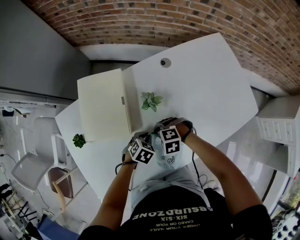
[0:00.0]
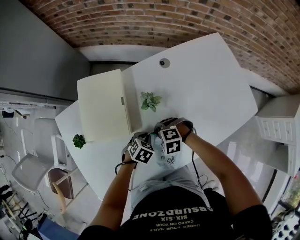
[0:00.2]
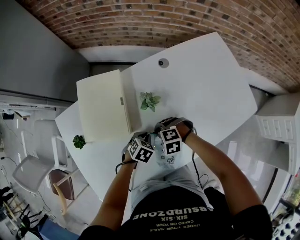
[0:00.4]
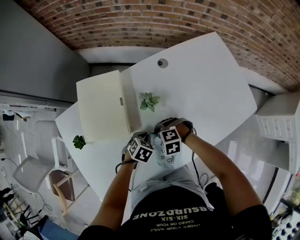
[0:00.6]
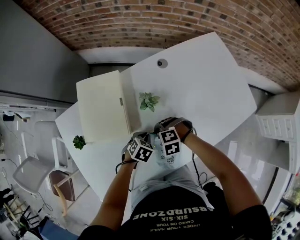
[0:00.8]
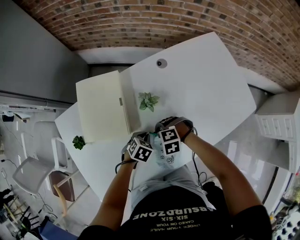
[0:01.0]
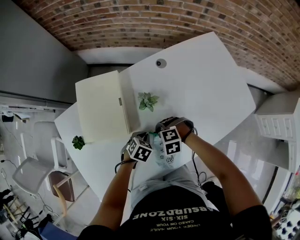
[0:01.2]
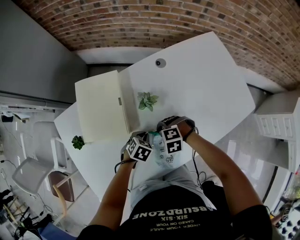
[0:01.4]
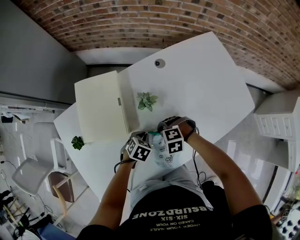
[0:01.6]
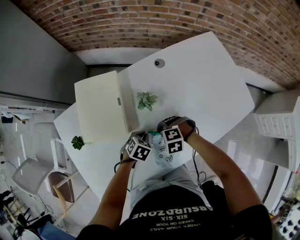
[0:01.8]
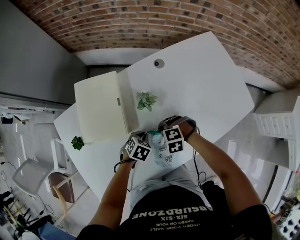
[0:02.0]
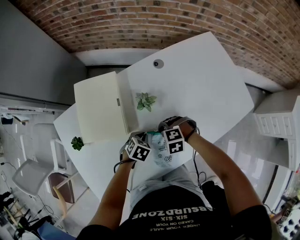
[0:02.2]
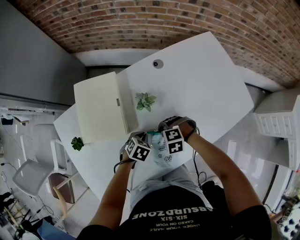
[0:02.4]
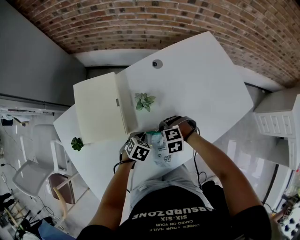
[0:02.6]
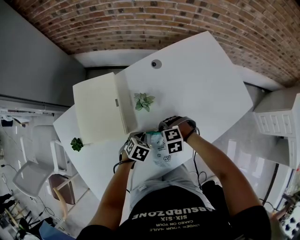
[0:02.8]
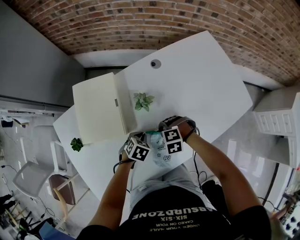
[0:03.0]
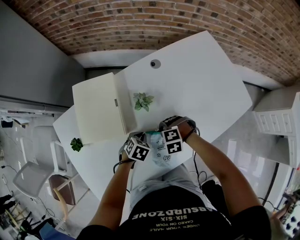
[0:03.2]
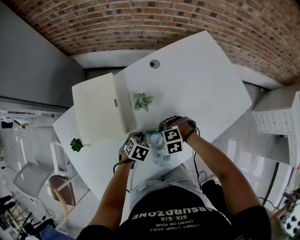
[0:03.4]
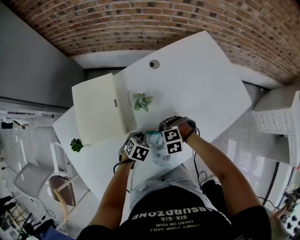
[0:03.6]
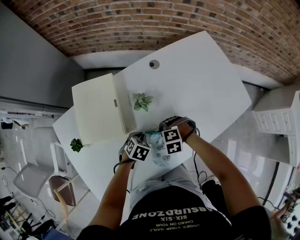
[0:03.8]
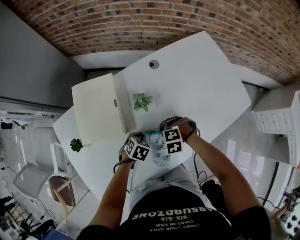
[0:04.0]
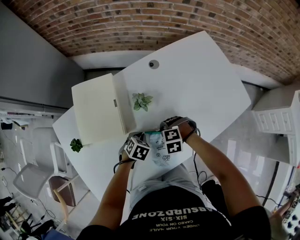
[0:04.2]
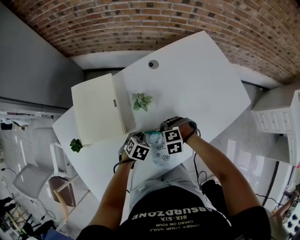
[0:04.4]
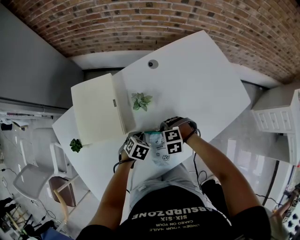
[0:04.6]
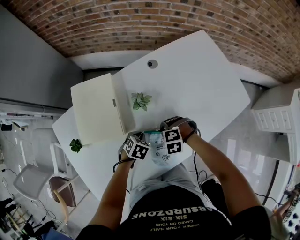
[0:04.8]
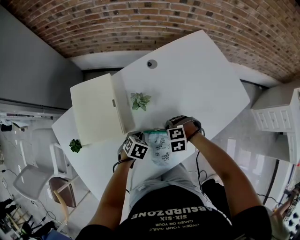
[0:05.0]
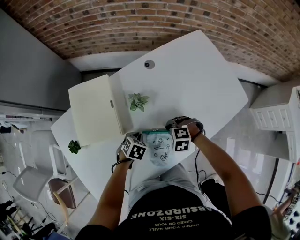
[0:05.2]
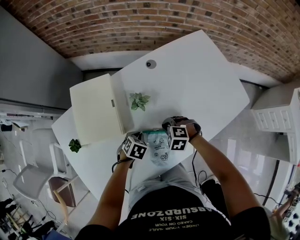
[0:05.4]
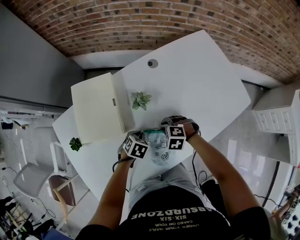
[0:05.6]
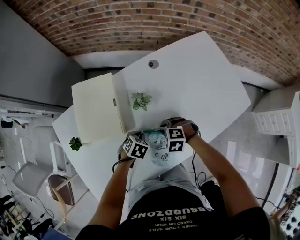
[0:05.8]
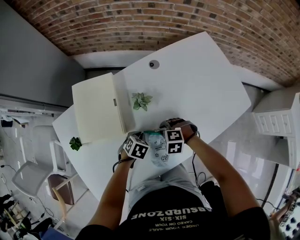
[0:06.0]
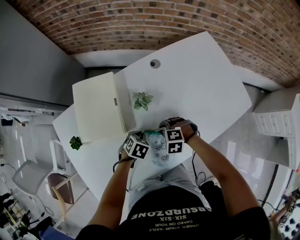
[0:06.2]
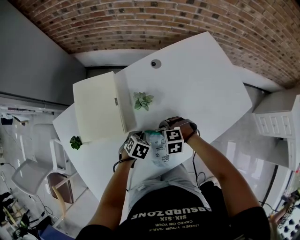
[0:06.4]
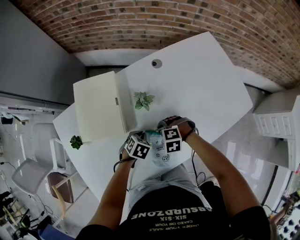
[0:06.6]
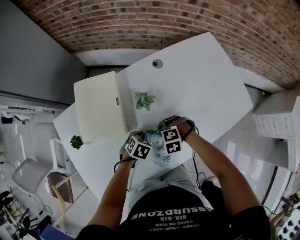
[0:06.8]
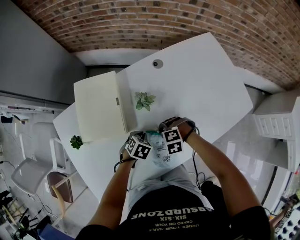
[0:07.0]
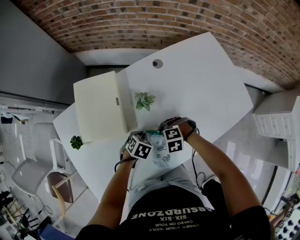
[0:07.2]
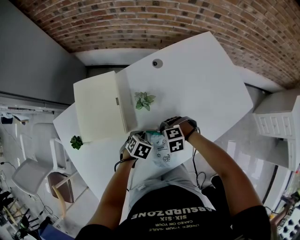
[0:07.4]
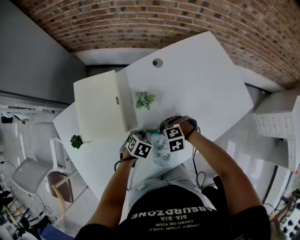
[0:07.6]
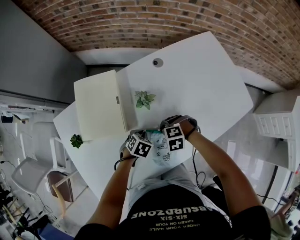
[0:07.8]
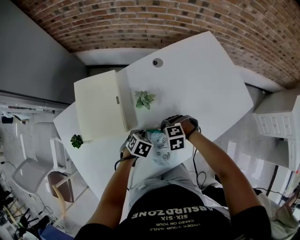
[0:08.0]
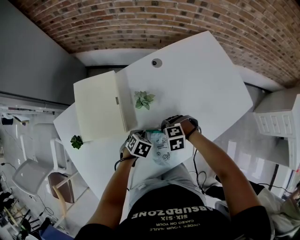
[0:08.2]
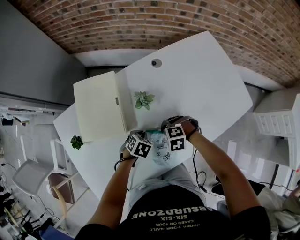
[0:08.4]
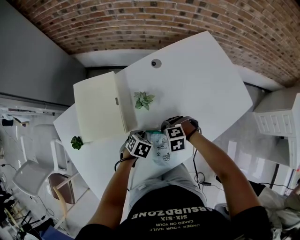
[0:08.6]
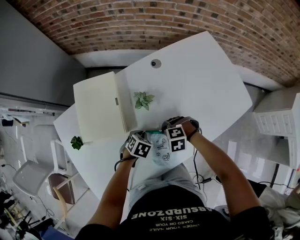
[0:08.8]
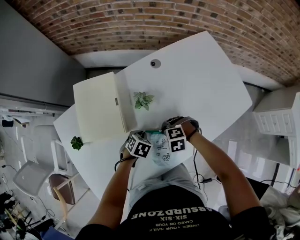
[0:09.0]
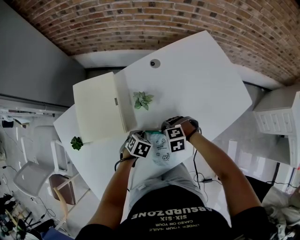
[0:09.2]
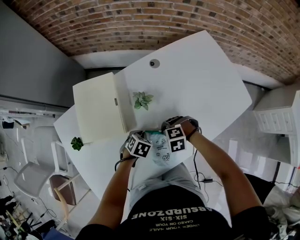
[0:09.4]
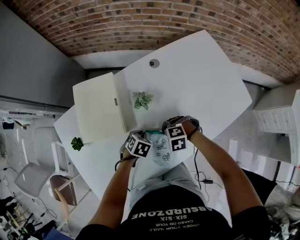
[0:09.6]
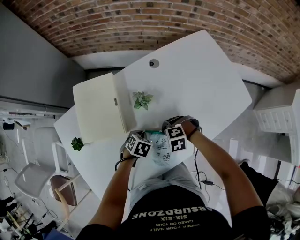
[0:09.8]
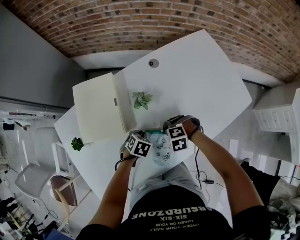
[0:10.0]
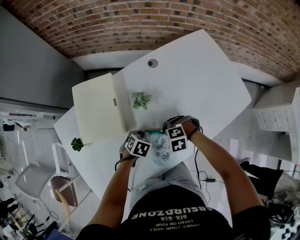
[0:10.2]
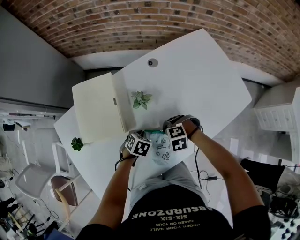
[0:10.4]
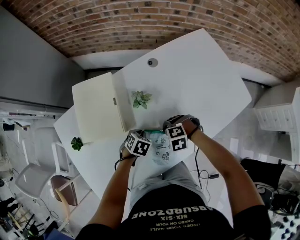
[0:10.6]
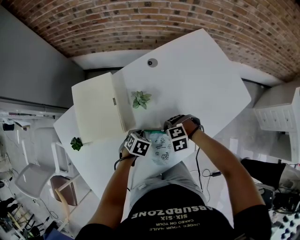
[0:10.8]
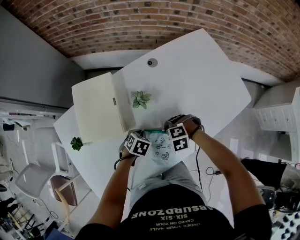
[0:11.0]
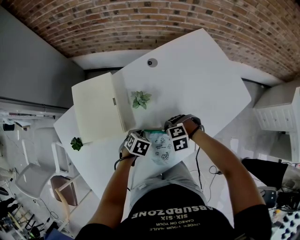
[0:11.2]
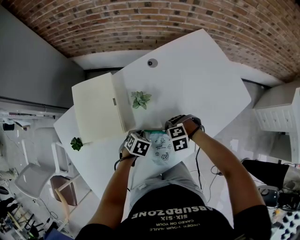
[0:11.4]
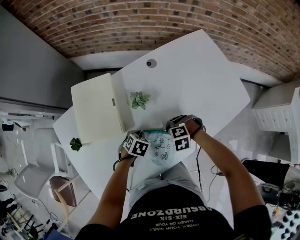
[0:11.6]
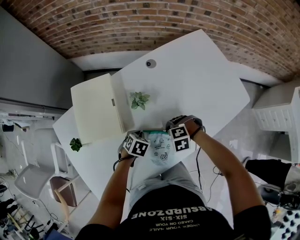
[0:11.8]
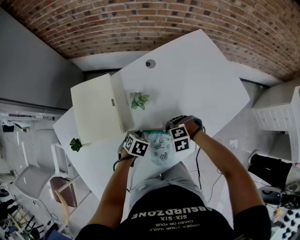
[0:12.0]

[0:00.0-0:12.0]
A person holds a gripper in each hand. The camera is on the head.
0:00.0 to 0:03.0: The grippers move only a little.
0:03.0 to 0:04.4: The grippers stay close to where they were, moving slightly.
0:04.4 to 0:07.6: The grippers move only a little.
0:07.6 to 0:09.0: Neither gripper changes place.
0:09.0 to 0:10.4: Neither gripper changes place.
0:10.4 to 0:12.0: The grippers make only small movements.

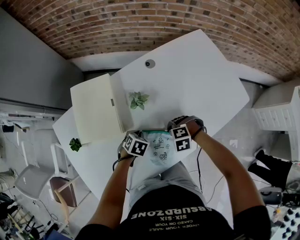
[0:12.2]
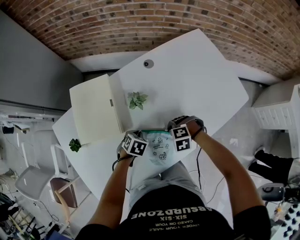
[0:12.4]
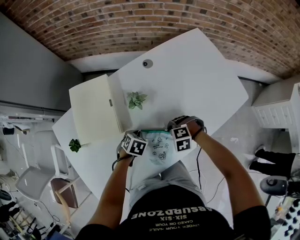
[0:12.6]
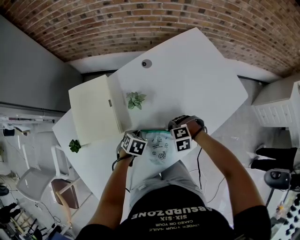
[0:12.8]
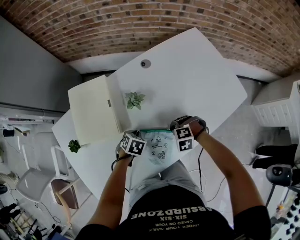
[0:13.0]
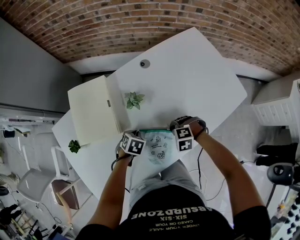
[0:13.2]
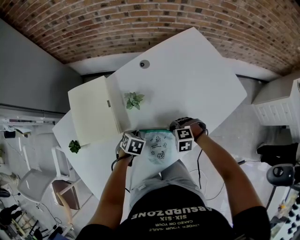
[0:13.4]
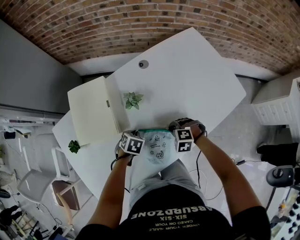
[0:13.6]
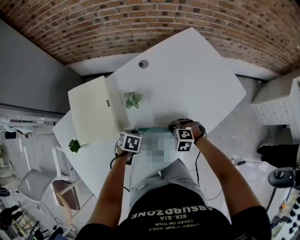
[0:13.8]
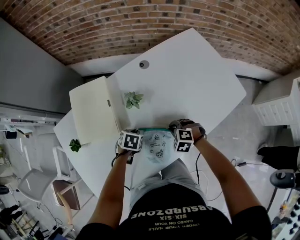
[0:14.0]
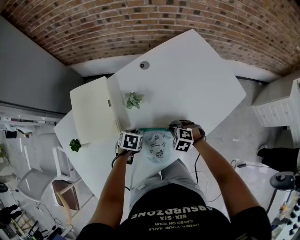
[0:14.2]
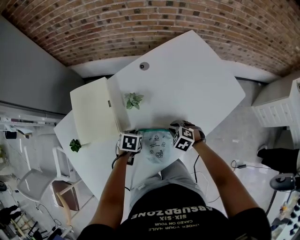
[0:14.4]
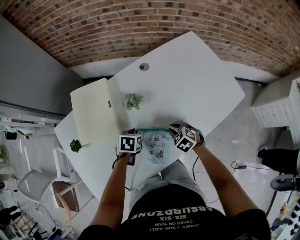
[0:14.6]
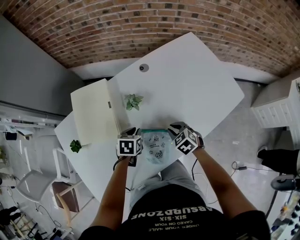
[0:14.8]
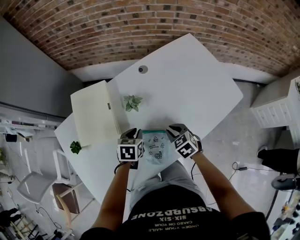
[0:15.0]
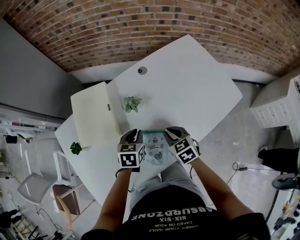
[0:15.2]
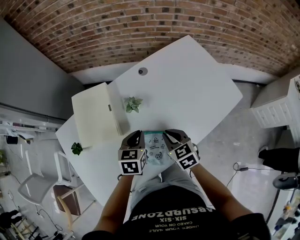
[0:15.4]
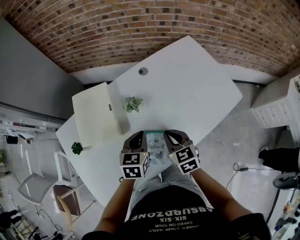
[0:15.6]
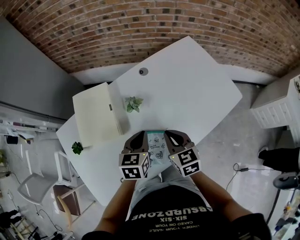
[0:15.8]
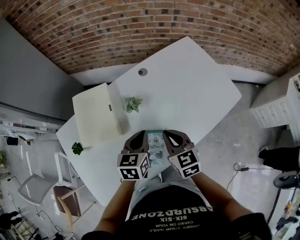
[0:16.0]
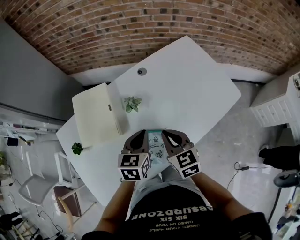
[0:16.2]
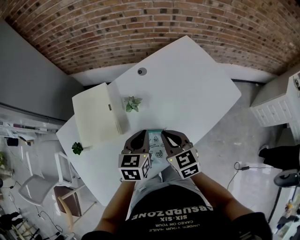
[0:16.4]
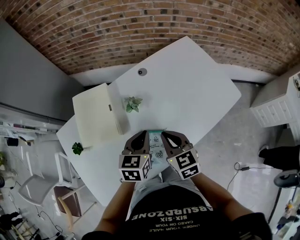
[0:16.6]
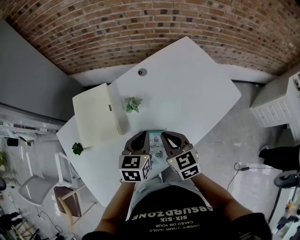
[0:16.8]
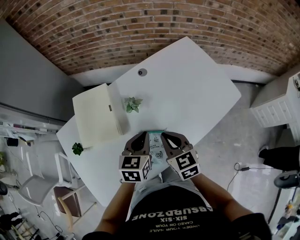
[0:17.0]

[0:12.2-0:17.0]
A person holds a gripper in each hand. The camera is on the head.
0:12.2 to 0:13.8: The right gripper swivels roughly 20 degrees.
0:13.8 to 0:15.4: The two grippers go roughly 15 cm upward. The right gripper rotates around the line of its fingers by about 50 degrees, clockwise from behind. The left gripper turns by roughly 30 degrees.
0:15.4 to 0:17.0: The grippers both shift upward by roughly 5 cm.

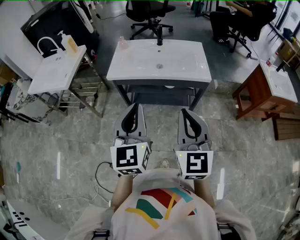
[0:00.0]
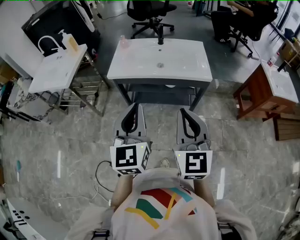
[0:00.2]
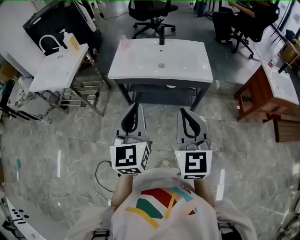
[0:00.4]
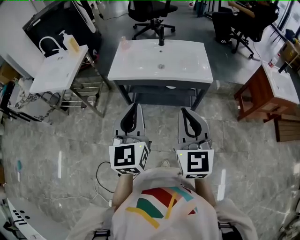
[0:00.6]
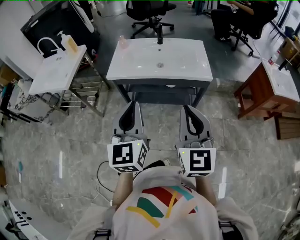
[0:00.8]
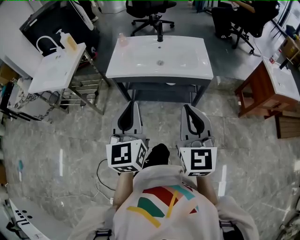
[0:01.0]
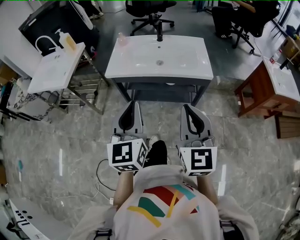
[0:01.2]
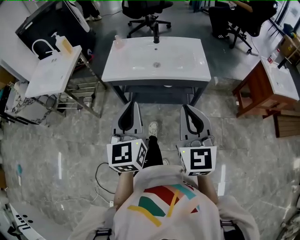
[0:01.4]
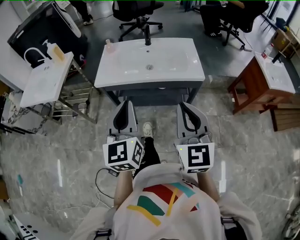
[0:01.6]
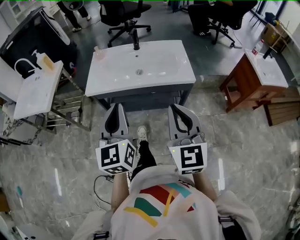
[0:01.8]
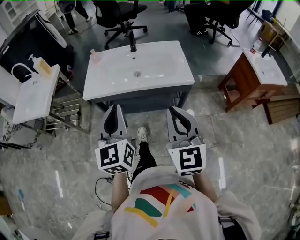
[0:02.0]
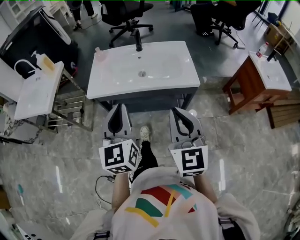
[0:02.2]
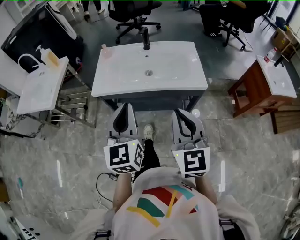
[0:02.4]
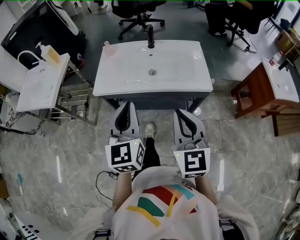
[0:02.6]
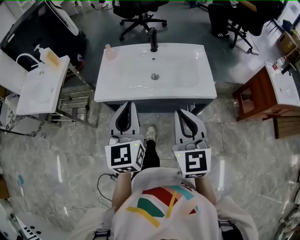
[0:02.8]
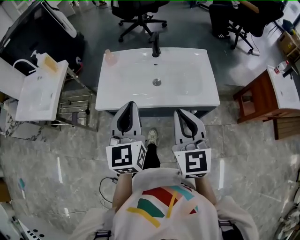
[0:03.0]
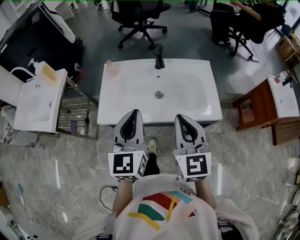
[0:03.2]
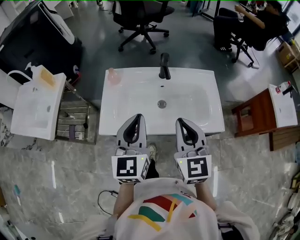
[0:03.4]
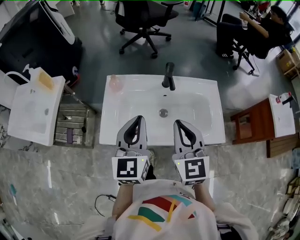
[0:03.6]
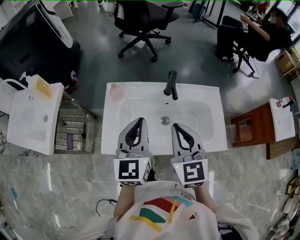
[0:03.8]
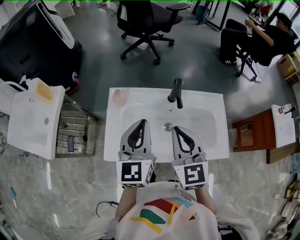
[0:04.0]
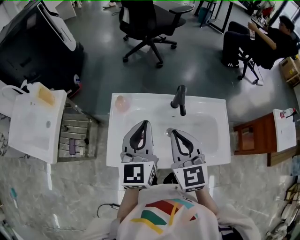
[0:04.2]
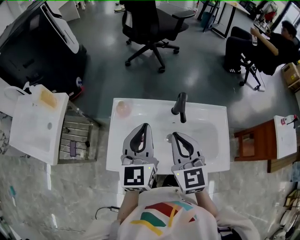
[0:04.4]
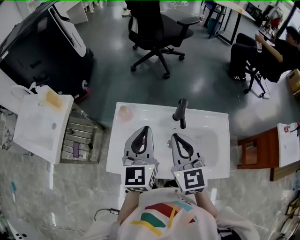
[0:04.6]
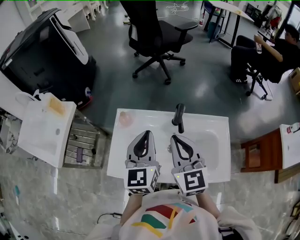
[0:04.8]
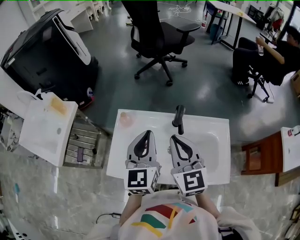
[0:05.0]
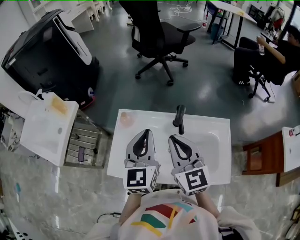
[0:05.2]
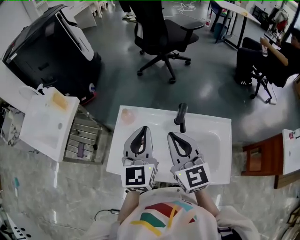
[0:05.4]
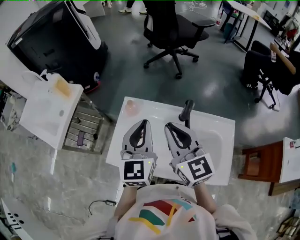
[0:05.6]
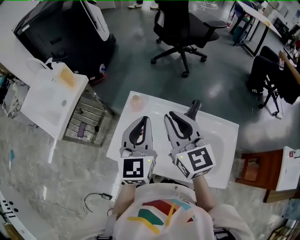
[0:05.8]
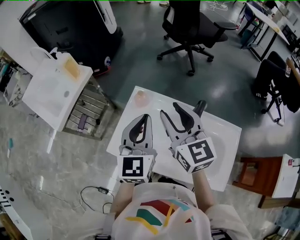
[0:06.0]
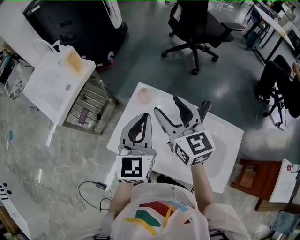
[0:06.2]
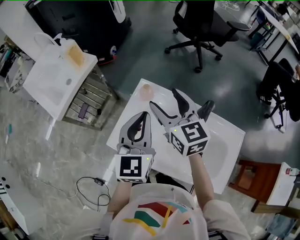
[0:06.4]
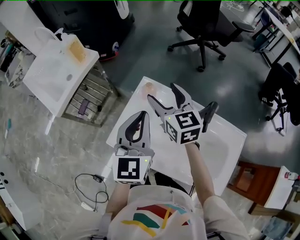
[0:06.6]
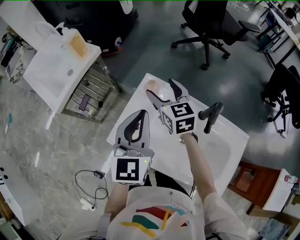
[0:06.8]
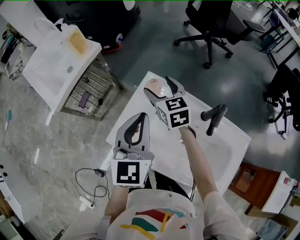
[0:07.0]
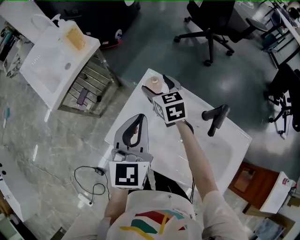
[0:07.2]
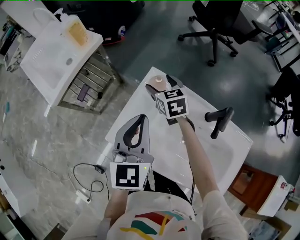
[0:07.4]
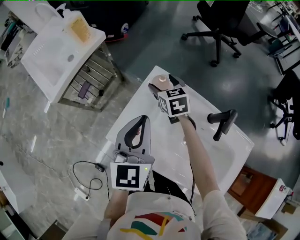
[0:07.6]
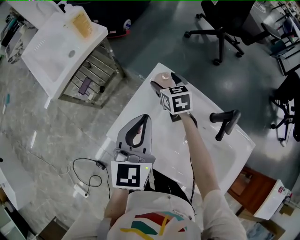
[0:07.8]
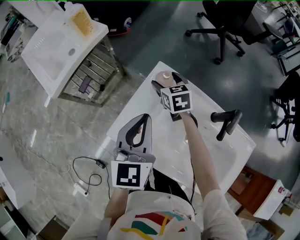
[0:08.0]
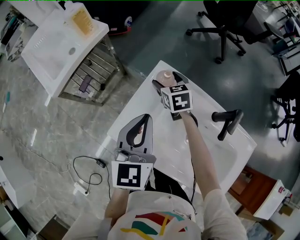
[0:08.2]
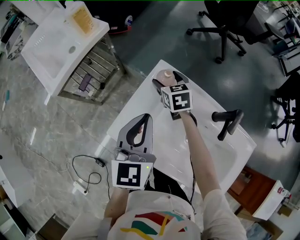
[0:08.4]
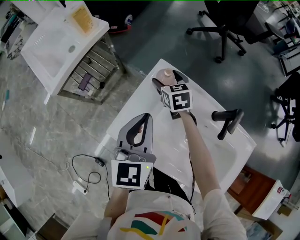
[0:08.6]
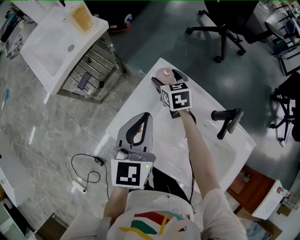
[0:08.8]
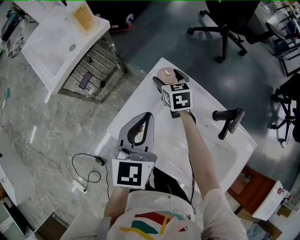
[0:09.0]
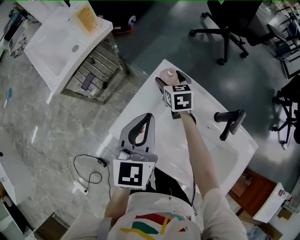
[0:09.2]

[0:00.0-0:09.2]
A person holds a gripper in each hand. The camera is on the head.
0:00.0 to 0:01.6: The grippers both shift forward by about 5 cm.
0:01.6 to 0:03.0: The grippers both shift forward by about 20 cm.
0:03.0 to 0:04.6: Both grippers travel together forward, about 30 cm.
0:04.6 to 0:06.2: The right gripper goes some 10 cm forward and to the left, changes its angle by approximately 30 degrees, and opens its fingers; the left gripper travels to the left by about 5 cm.
0:06.2 to 0:07.6: The left gripper is displaced downward and to the left by about 10 cm; the right gripper is displaced downward and forward by some 25 cm, and rotates approximately 30 degrees.
0:07.6 to 0:09.2: The grippers stay close to where they were, moving slightly.
